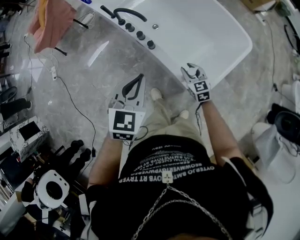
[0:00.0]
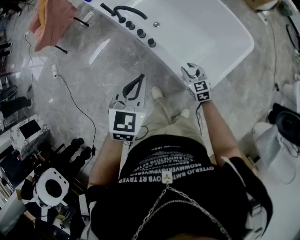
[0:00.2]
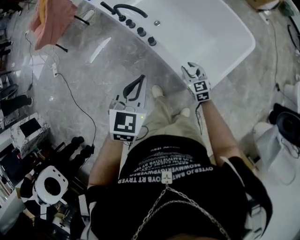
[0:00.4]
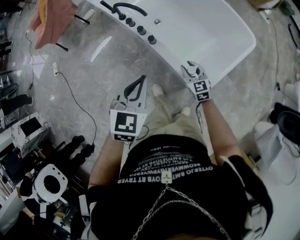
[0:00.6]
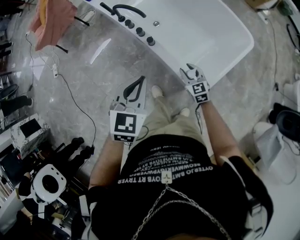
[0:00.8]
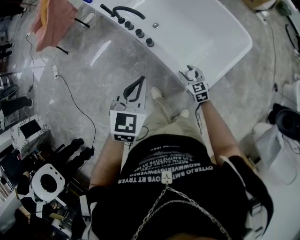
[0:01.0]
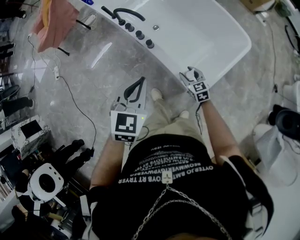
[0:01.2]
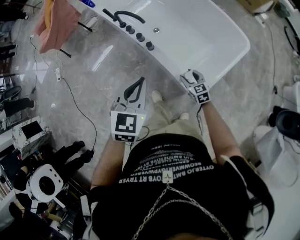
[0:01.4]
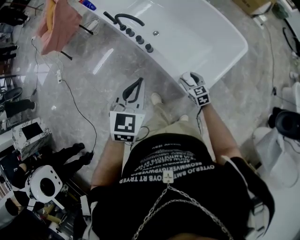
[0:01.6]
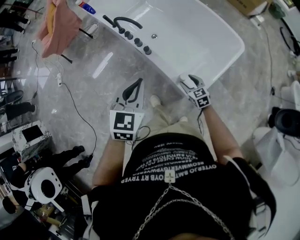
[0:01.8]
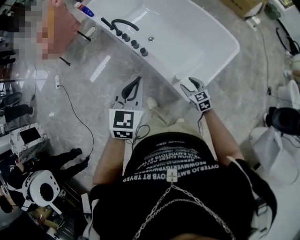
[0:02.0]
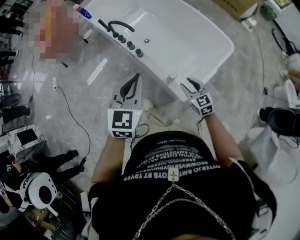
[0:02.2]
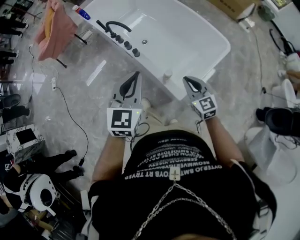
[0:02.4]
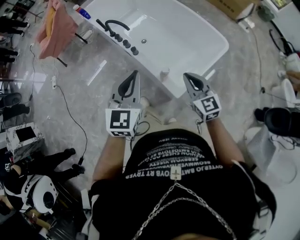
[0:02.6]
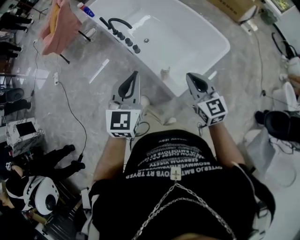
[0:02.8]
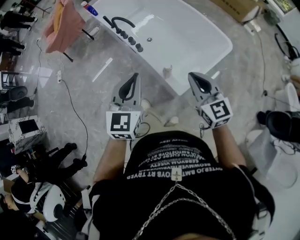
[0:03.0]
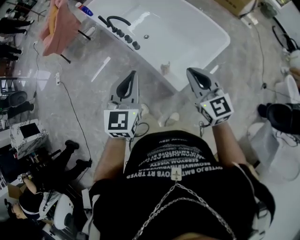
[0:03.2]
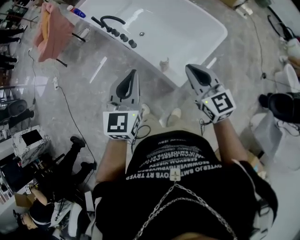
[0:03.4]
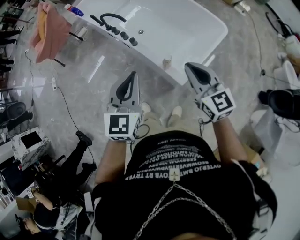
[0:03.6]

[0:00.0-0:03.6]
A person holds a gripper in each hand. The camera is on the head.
0:00.0 to 0:01.8: The grippers both shift backward by approximately 5 cm. The right gripper opens.
0:01.8 to 0:03.6: The right gripper goes about 35 cm upward, swivels roughly 30 degrees, and closes up; the left gripper moves backward and upward, about 10 cm.

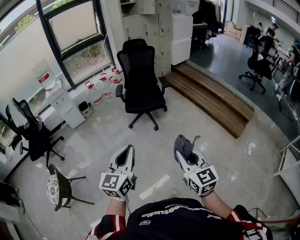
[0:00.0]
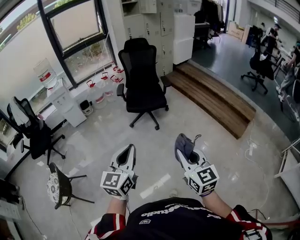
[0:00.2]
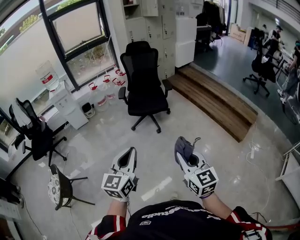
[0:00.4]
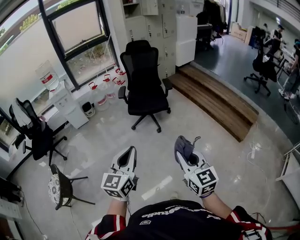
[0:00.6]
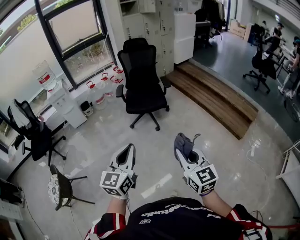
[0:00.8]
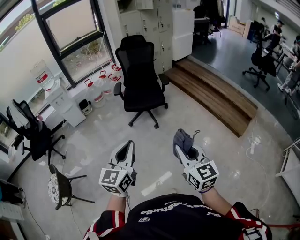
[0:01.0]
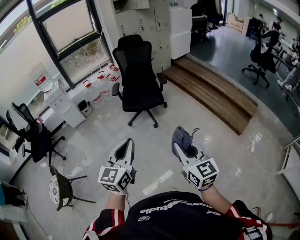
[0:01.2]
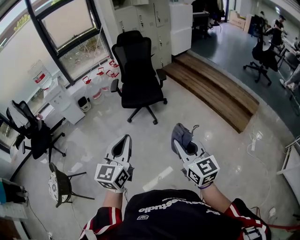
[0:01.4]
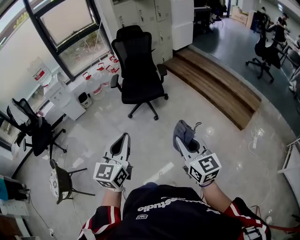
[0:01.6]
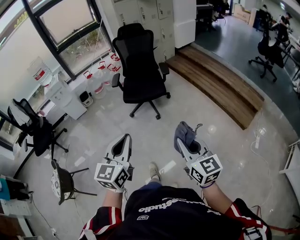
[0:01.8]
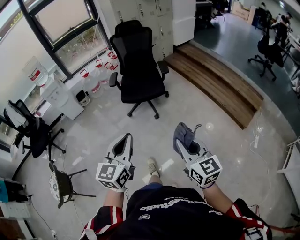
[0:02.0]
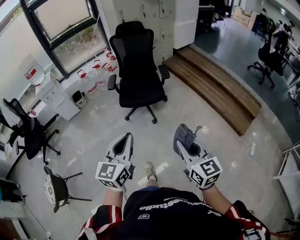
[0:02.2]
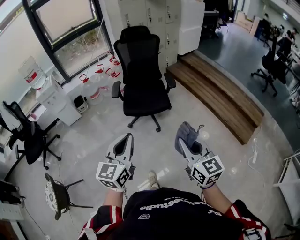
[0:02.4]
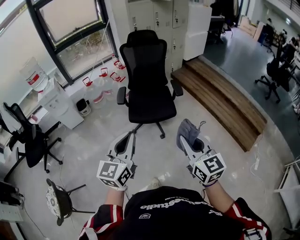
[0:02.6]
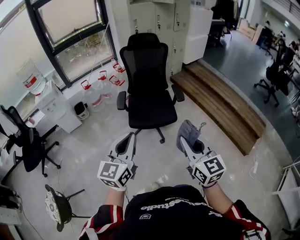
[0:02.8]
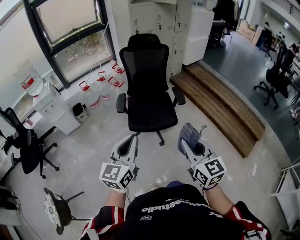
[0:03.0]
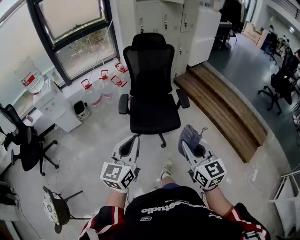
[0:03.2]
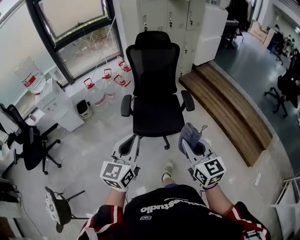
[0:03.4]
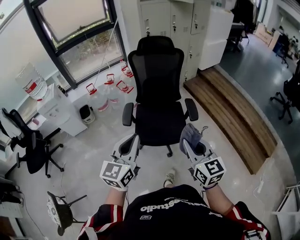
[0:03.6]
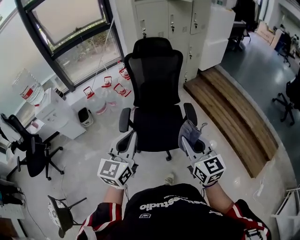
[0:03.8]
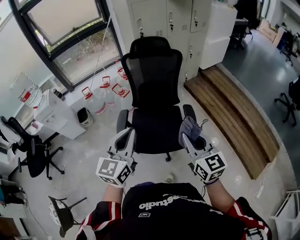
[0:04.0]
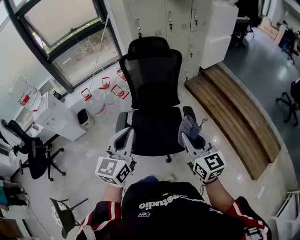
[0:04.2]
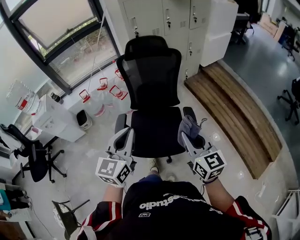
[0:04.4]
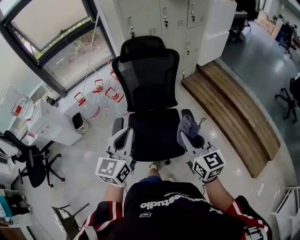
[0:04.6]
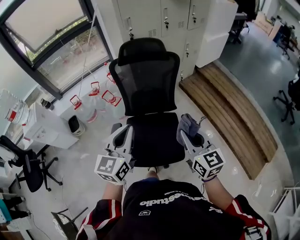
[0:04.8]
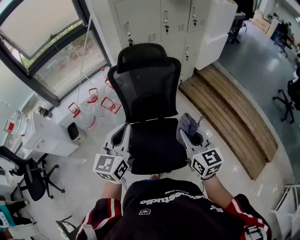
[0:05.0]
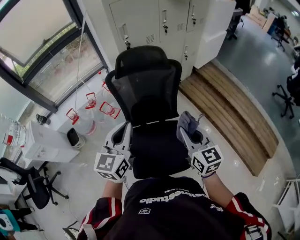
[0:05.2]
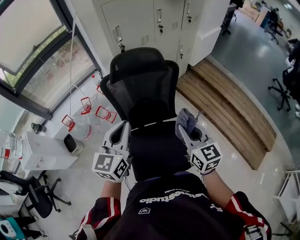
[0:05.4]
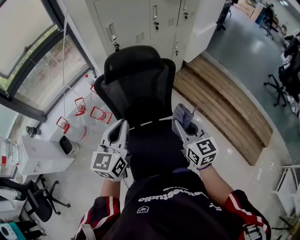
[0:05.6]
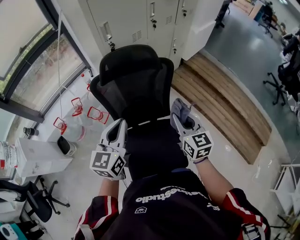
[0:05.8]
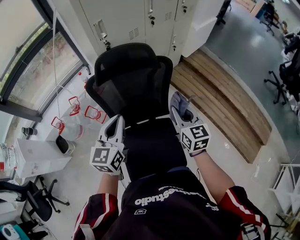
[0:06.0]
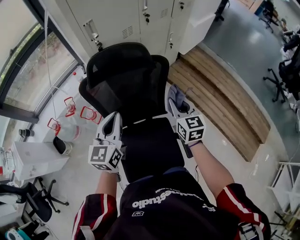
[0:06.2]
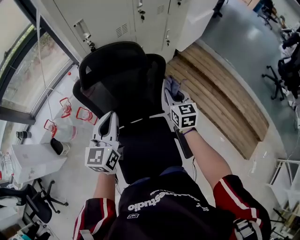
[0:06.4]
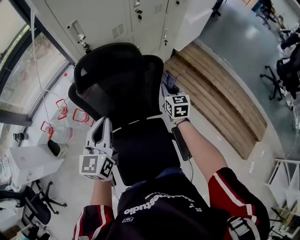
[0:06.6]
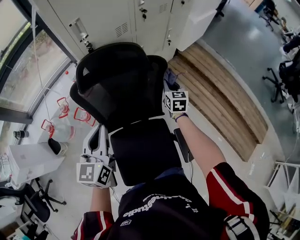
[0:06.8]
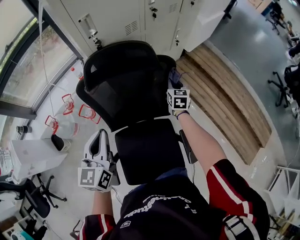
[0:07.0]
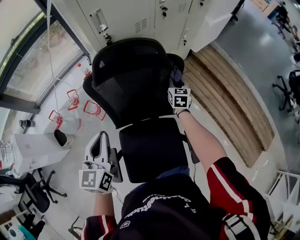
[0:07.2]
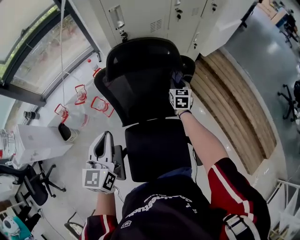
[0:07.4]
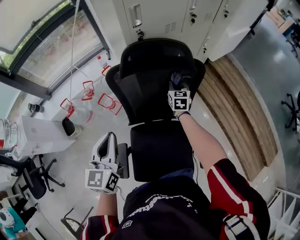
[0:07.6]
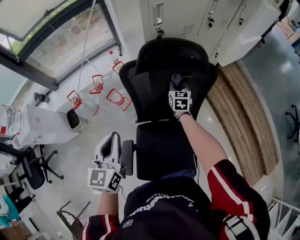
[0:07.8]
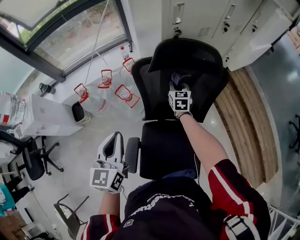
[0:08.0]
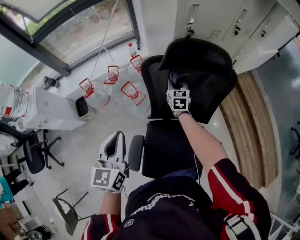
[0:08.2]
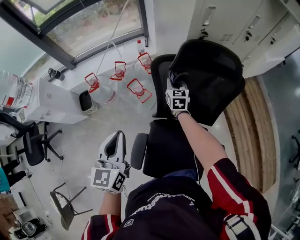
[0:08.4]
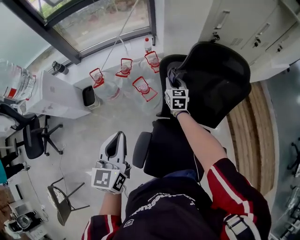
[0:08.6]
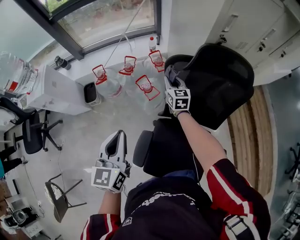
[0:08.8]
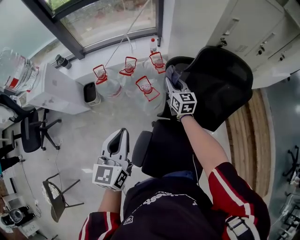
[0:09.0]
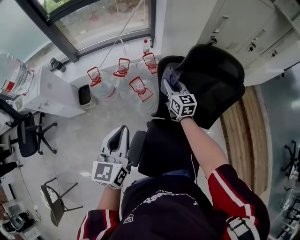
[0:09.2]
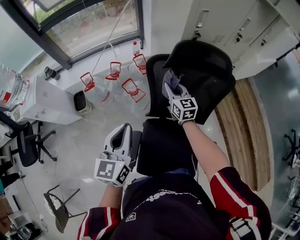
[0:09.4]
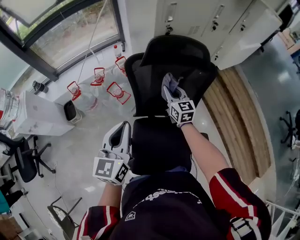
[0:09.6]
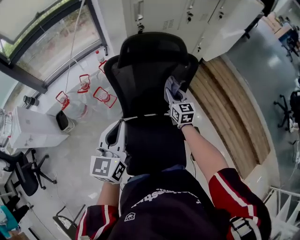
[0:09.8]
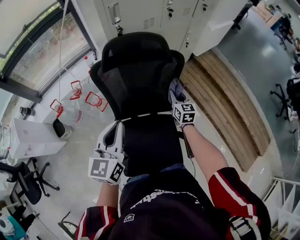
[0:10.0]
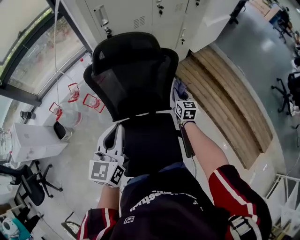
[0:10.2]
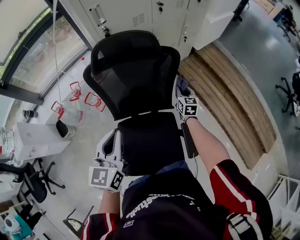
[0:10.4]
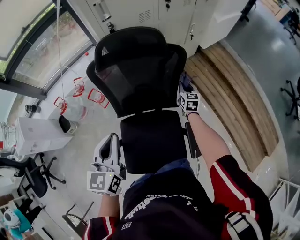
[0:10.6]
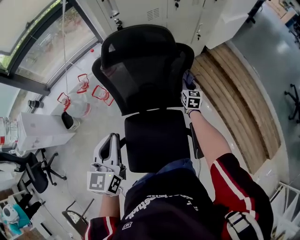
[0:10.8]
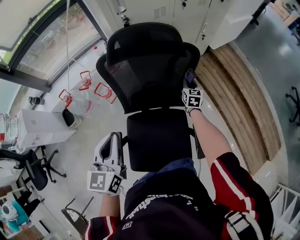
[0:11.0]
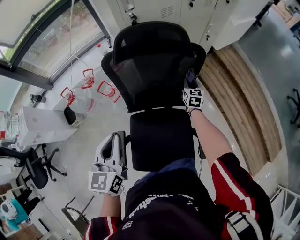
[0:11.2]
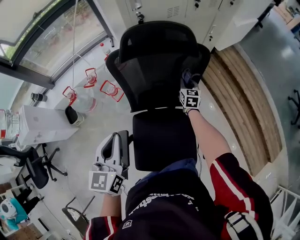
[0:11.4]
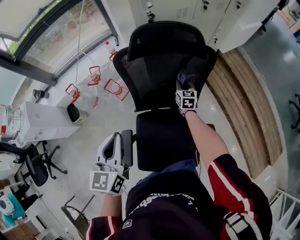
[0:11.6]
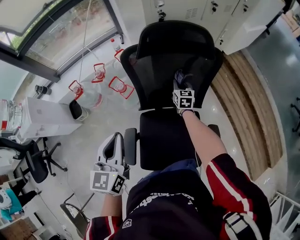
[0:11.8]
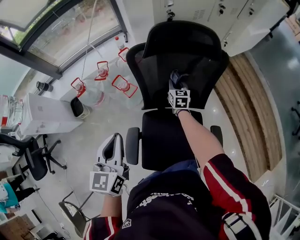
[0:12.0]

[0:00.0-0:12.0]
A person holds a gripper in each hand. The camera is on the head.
0:00.0 to 0:01.6: Both grippers move to the right and forward, some 15 cm.
0:01.6 to 0:03.0: The two grippers travel together, forward, roughly 40 cm.
0:03.0 to 0:04.4: The two grippers travel together, forward, some 40 cm.
0:04.4 to 0:06.0: The pair of grippers is taken forward, approximately 50 cm.
0:06.0 to 0:07.6: The right gripper heads forward, downward and to the left, covering approximately 30 cm; the left gripper travels to the left by some 10 cm.
0:07.6 to 0:09.0: The left gripper moves some 15 cm. Meanwhile the right gripper ends up some 35 cm from where it was, and rotates roughly 40 degrees.
0:09.0 to 0:10.4: The right gripper shifts by approximately 50 cm, and turns by about 40 degrees. Meanwhile the left gripper moves about 30 cm, and changes its angle by approximately 20 degrees.
0:10.4 to 0:12.0: The right gripper moves to the left, some 30 cm, while the left gripper shifts roughly 20 cm to the left.

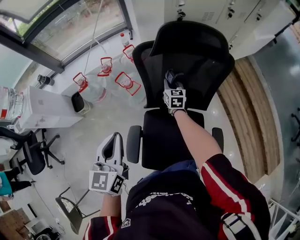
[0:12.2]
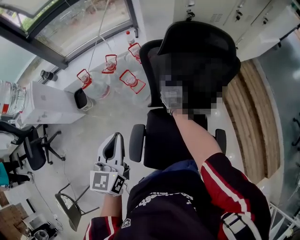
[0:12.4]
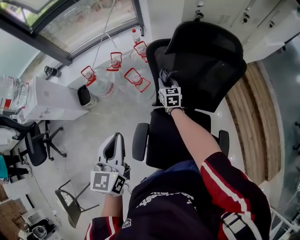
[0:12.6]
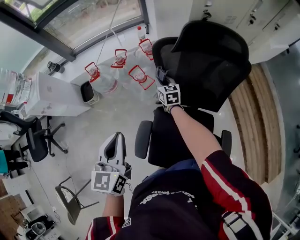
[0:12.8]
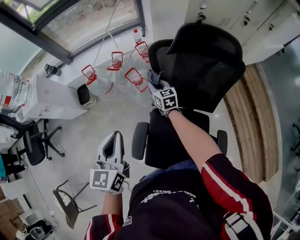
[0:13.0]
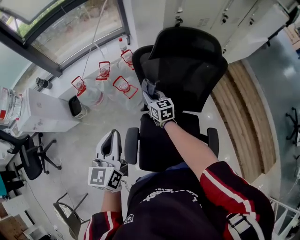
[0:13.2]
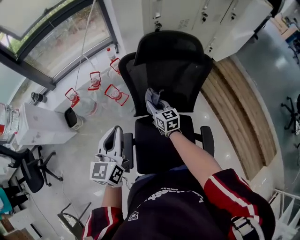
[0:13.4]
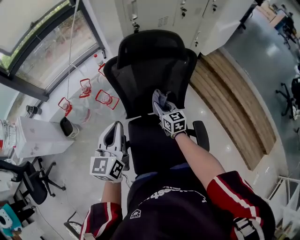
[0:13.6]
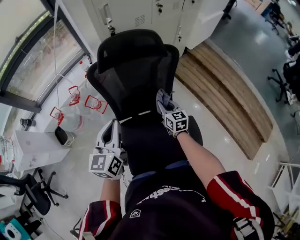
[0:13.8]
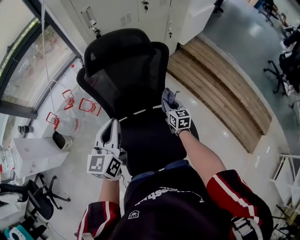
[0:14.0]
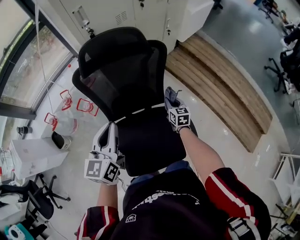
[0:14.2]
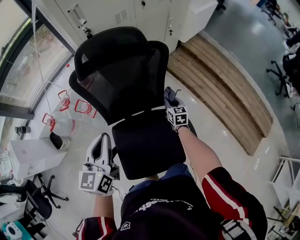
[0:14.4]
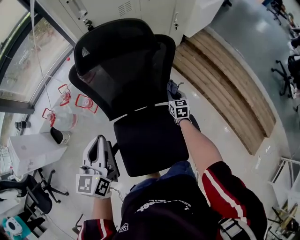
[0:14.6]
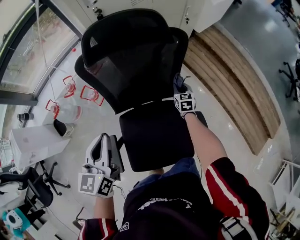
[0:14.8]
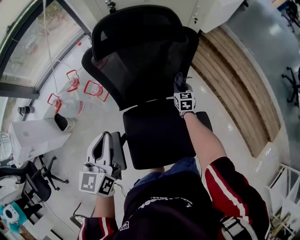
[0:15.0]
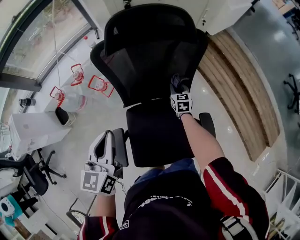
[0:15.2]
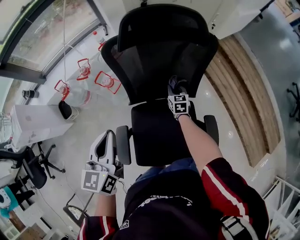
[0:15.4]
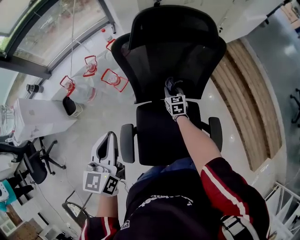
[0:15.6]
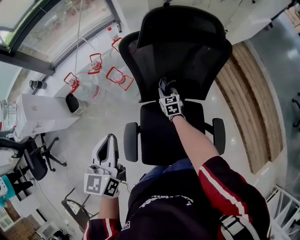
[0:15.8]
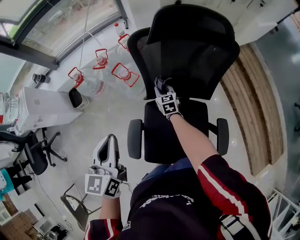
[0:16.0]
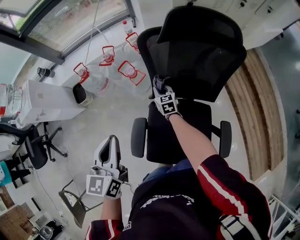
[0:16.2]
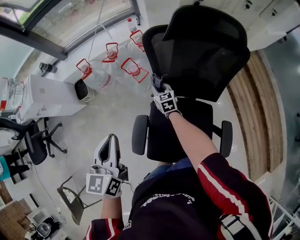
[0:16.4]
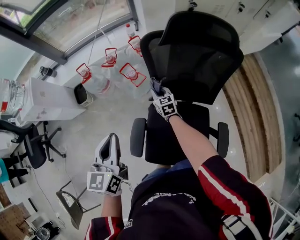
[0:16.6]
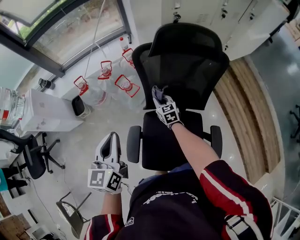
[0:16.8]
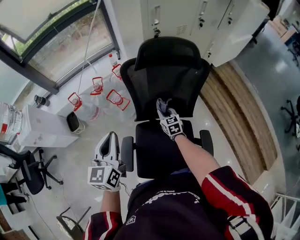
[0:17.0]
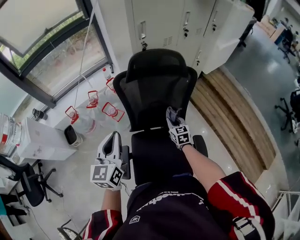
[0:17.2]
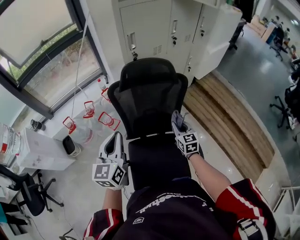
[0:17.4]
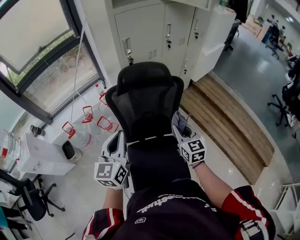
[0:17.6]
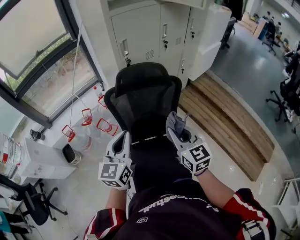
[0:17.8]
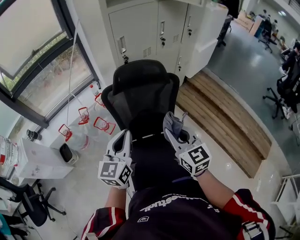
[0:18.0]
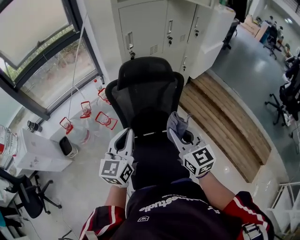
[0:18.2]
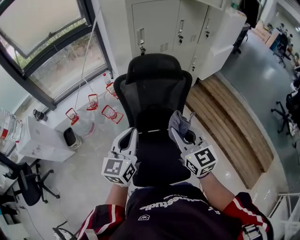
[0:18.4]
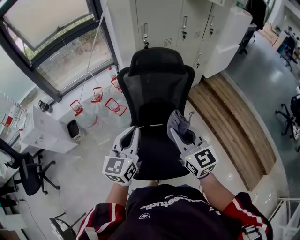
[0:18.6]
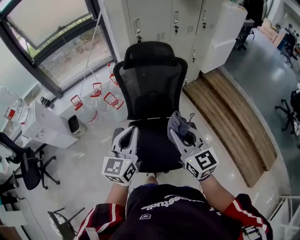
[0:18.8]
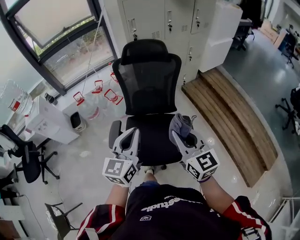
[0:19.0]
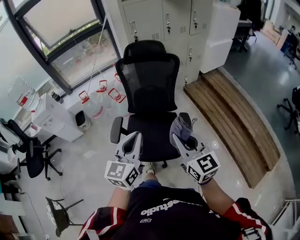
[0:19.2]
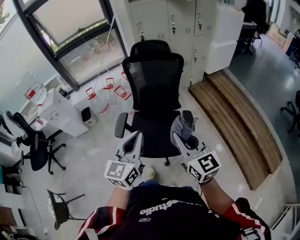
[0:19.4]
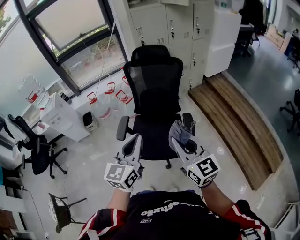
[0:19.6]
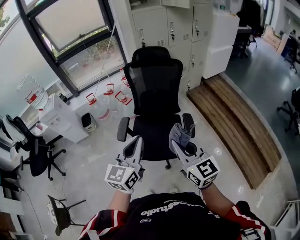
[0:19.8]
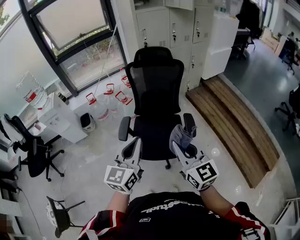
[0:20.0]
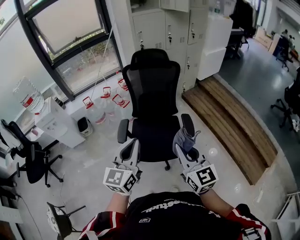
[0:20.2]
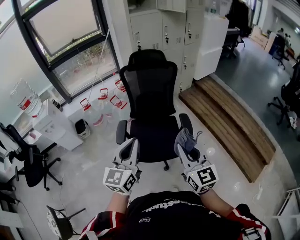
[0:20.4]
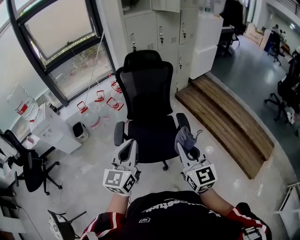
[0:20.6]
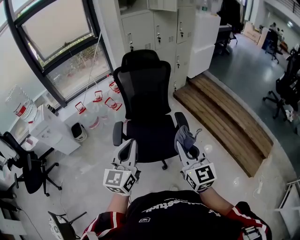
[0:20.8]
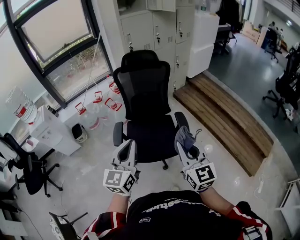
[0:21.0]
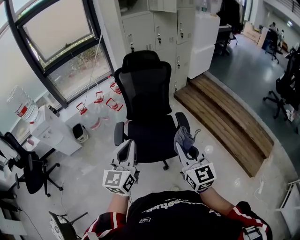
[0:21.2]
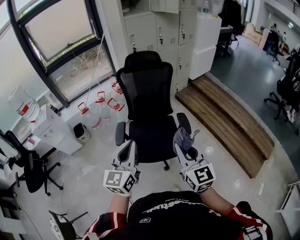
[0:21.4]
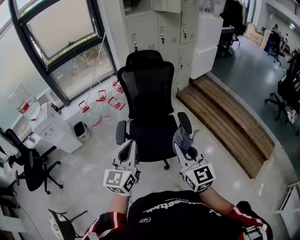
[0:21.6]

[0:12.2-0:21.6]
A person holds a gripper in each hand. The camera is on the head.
0:12.2 to 0:13.8: The right gripper moves backward and to the right, roughly 25 cm. Meanwhile the left gripper shifts approximately 15 cm to the right.
0:13.8 to 0:15.4: The left gripper heads to the left and downward, covering about 10 cm; the right gripper goes roughly 20 cm downward and forward, and goes to the right and returns, roughly 10 cm each way.
0:15.4 to 0:17.0: The left gripper heads upward and to the left, covering some 10 cm. The right gripper shifts some 15 cm to the left, upward and backward.
0:17.0 to 0:18.4: The left gripper moves to the right and upward, some 15 cm. The right gripper travels upward and backward by some 40 cm, and turns by approximately 20 degrees.
0:18.4 to 0:20.0: Both grippers are carried backward, approximately 50 cm.
0:20.0 to 0:21.6: There are only small adjustments of the grippers.
